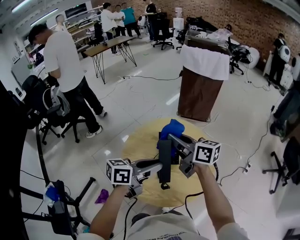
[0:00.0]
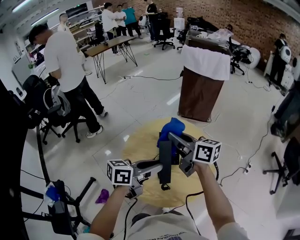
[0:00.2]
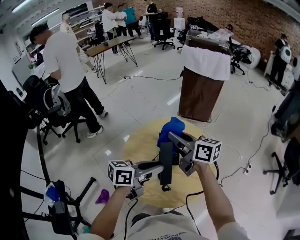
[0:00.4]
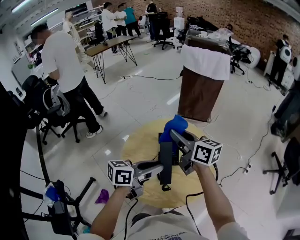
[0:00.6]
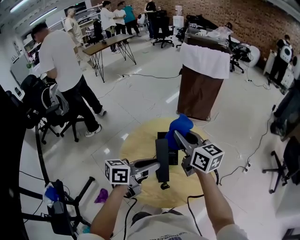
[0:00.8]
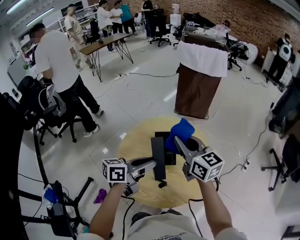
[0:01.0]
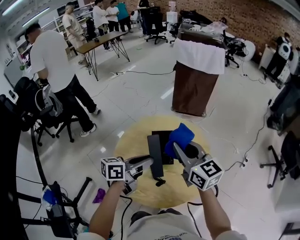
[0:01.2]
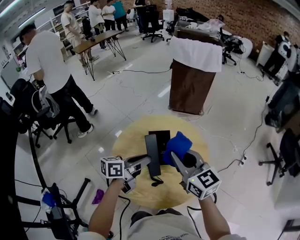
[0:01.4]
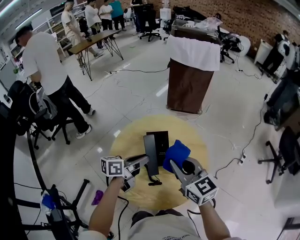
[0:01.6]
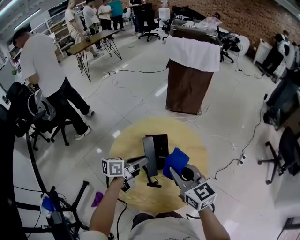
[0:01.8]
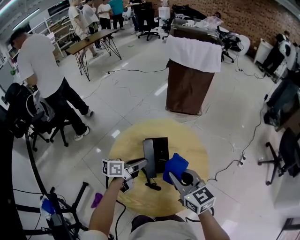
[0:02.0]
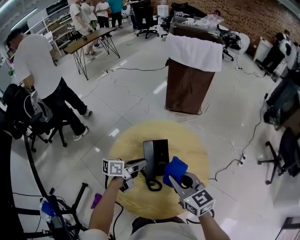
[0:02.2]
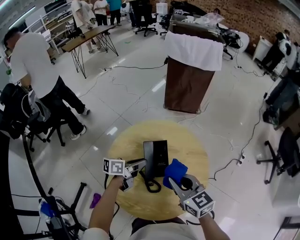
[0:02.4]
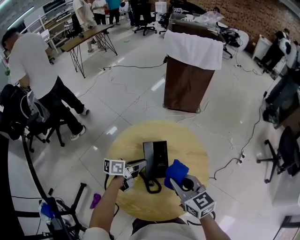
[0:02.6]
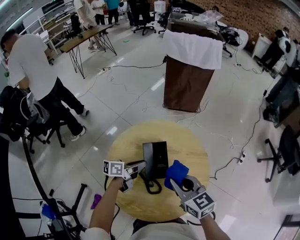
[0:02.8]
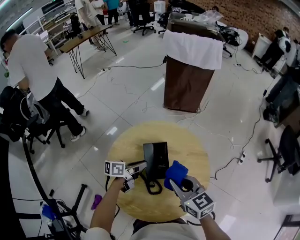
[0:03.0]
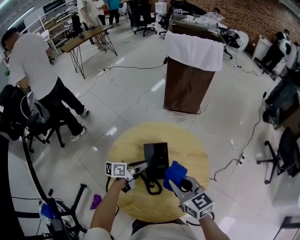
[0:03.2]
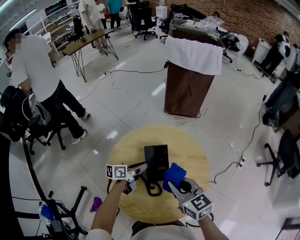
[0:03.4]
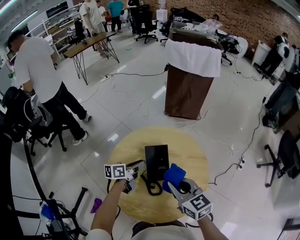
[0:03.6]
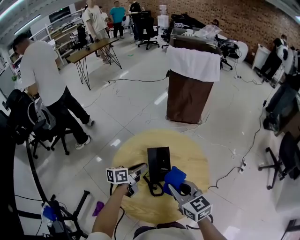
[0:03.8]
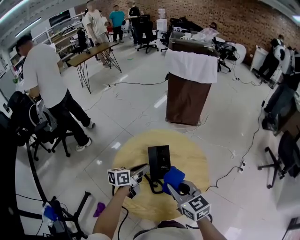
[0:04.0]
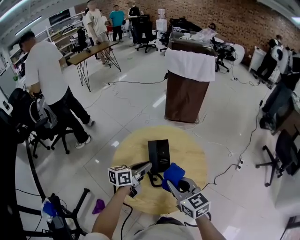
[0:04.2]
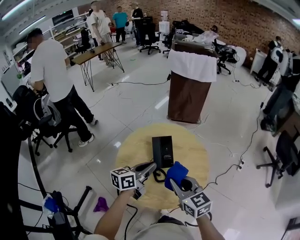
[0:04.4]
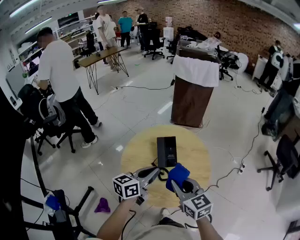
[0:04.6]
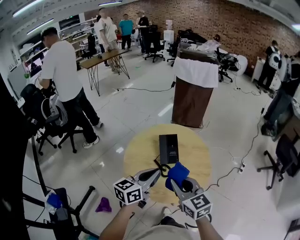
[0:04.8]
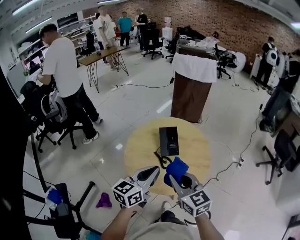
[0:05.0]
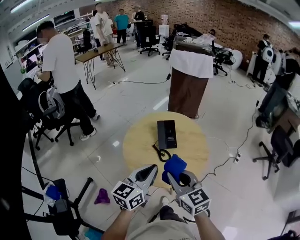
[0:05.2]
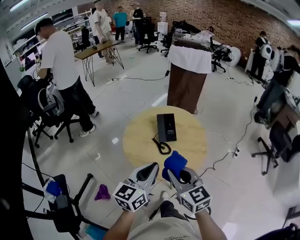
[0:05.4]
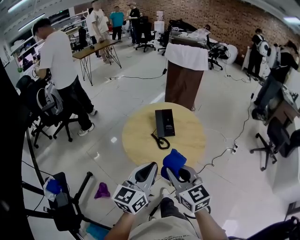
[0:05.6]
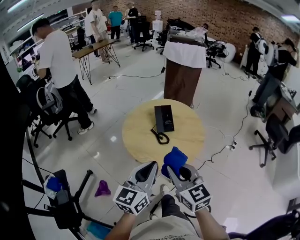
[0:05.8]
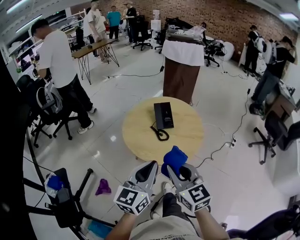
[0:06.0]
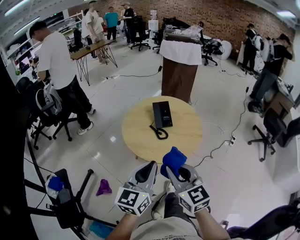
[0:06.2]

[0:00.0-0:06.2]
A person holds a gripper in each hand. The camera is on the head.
0.0 to 1.6 s: The right gripper heads to the right and backward, covering roughly 10 cm, and changes its angle by about 30 degrees. The left gripper is displaced downward and forward by some 10 cm.
1.6 to 3.2 s: The left gripper travels downward and forward by about 15 cm. Meanwhile the right gripper goes some 5 cm downward.
3.2 to 4.6 s: The left gripper moves upward and backward, some 25 cm, and swivels approximately 30 degrees, while the right gripper goes roughly 15 cm backward and upward.
4.6 to 6.2 s: Both grippers travel together backward, some 25 cm. The left gripper rotates roughly 30 degrees.

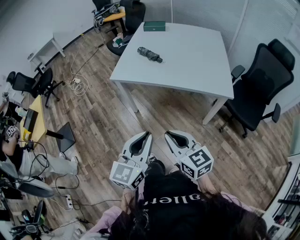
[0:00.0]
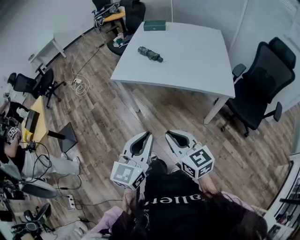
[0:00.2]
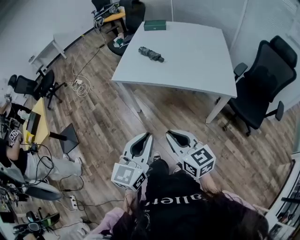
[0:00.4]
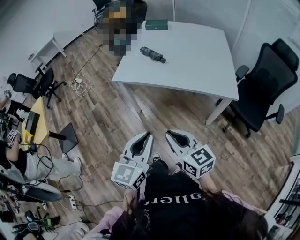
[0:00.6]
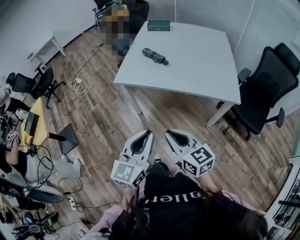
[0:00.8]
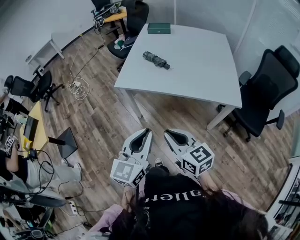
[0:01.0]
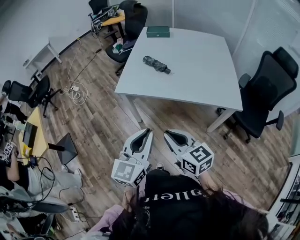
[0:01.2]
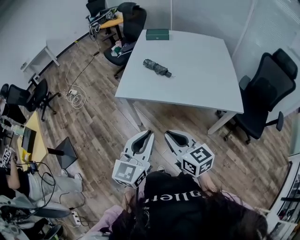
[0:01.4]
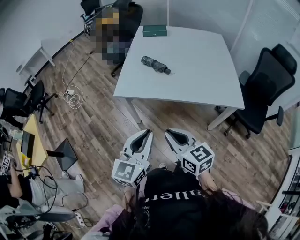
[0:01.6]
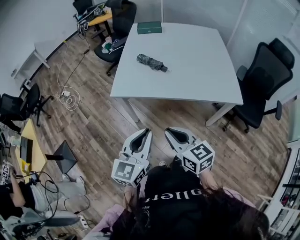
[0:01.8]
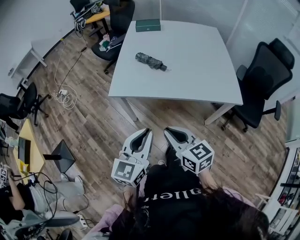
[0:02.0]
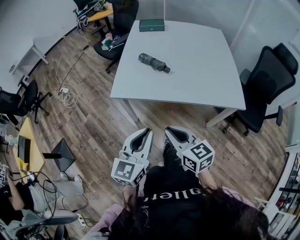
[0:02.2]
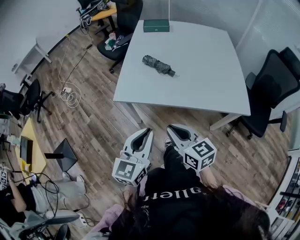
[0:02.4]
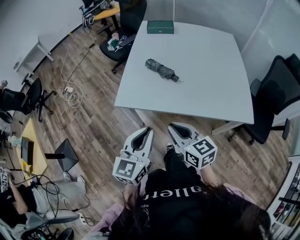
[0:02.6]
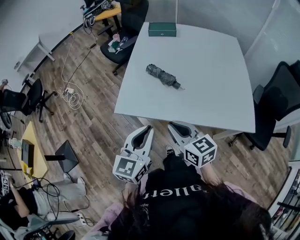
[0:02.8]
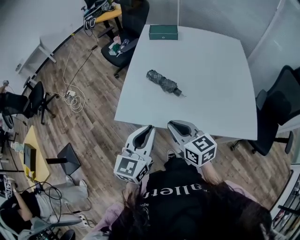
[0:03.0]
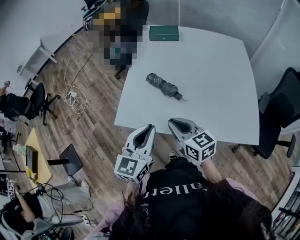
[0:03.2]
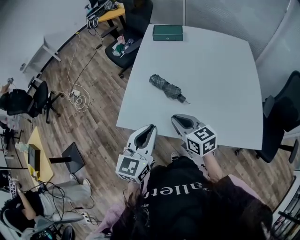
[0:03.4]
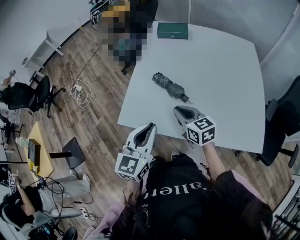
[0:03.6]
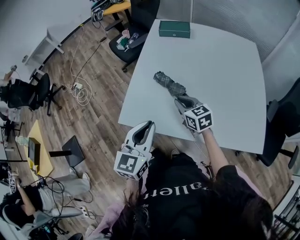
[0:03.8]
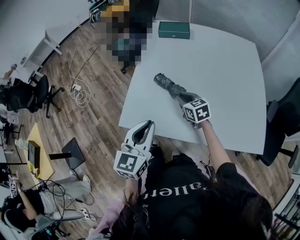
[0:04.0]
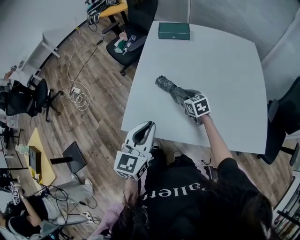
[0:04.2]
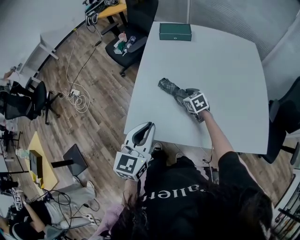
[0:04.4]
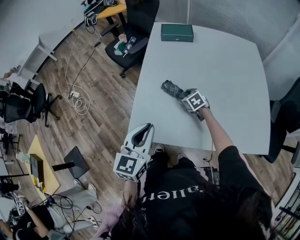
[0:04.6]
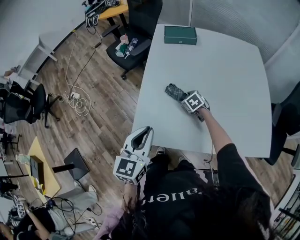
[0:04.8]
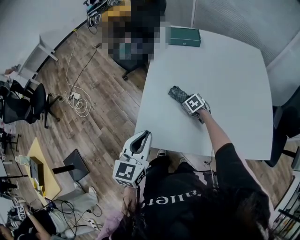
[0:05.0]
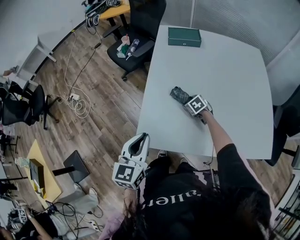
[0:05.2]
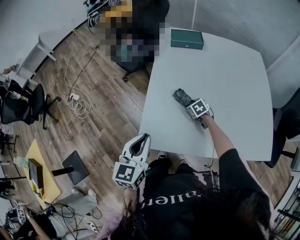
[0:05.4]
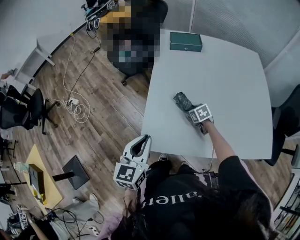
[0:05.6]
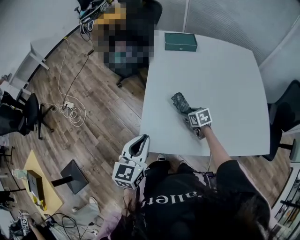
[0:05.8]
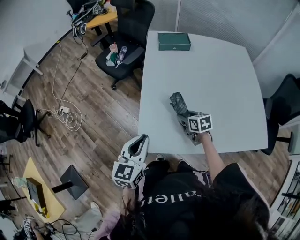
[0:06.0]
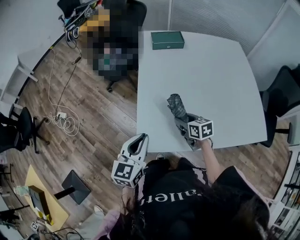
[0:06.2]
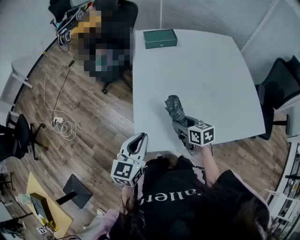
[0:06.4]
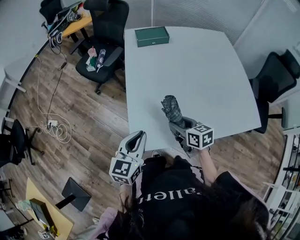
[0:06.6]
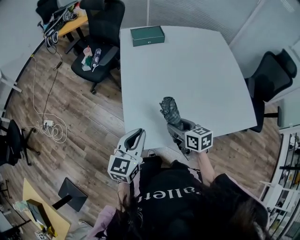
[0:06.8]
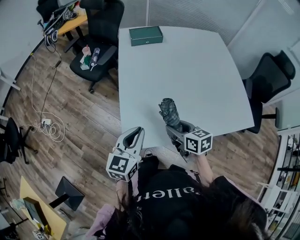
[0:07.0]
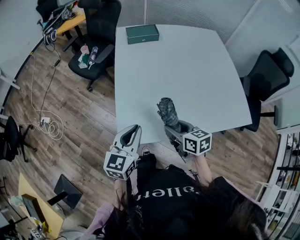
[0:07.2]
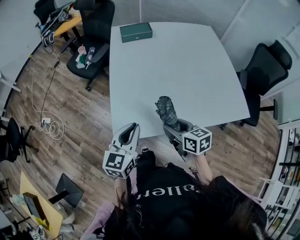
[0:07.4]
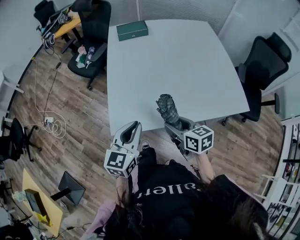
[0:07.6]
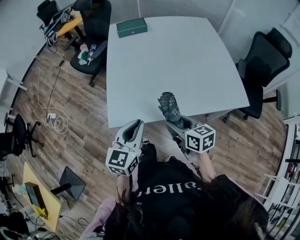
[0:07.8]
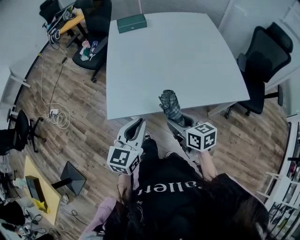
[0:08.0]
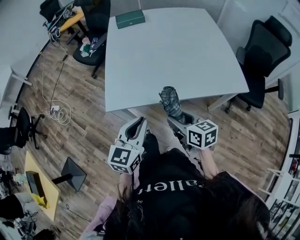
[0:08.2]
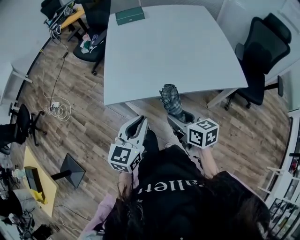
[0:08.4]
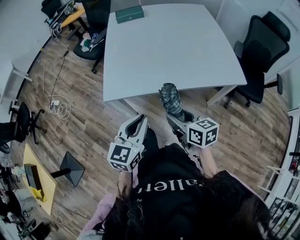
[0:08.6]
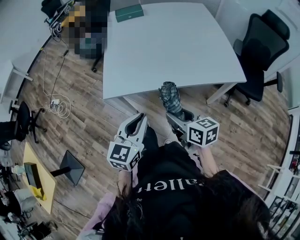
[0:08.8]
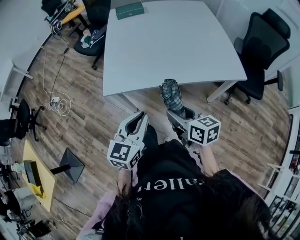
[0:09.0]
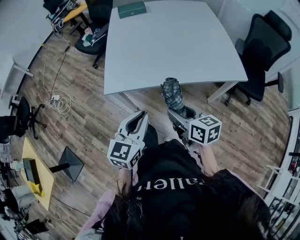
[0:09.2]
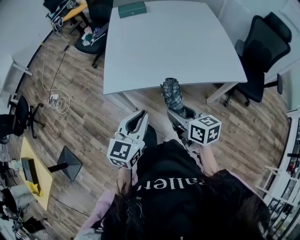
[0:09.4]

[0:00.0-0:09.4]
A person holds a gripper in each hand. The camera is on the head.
0.0 to 1.6 s: Both grippers travel together forward and to the left, approximately 20 cm.
1.6 to 3.2 s: The two grippers go some 30 cm forward.
3.2 to 4.8 s: The left gripper moves forward and to the left, approximately 15 cm. Meanwhile the right gripper shifts approximately 35 cm forward and downward, points its fingers about 40 degrees further downward, and opens up.
4.8 to 6.2 s: The left gripper travels to the left by some 10 cm, while the right gripper shifts some 15 cm backward, upward and to the left, and changes its angle by some 40 degrees.
6.2 to 7.8 s: The right gripper is displaced backward, to the right and upward by some 25 cm. Meanwhile the left gripper moves to the right and backward, about 20 cm.
7.8 to 9.4 s: Both grippers move backward, approximately 15 cm.

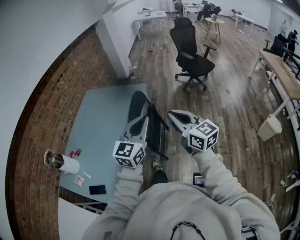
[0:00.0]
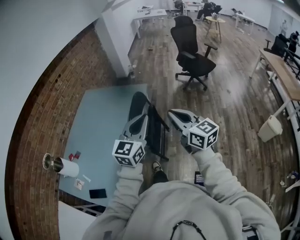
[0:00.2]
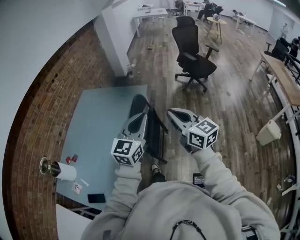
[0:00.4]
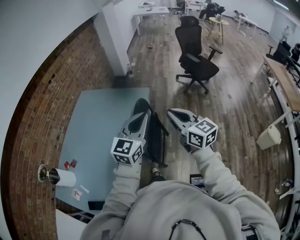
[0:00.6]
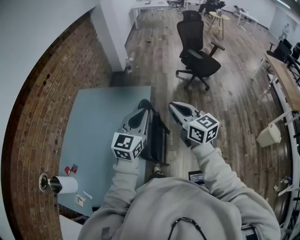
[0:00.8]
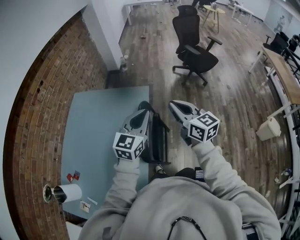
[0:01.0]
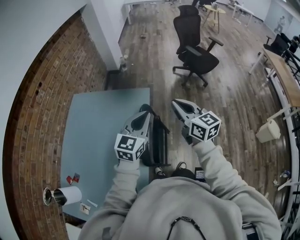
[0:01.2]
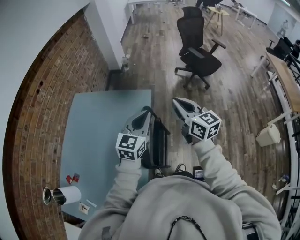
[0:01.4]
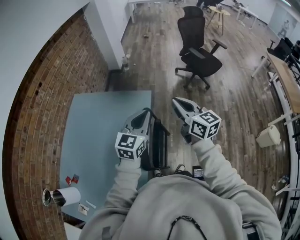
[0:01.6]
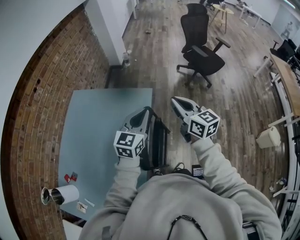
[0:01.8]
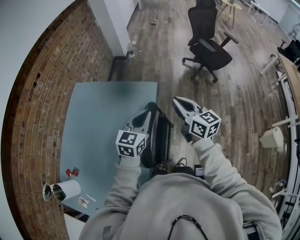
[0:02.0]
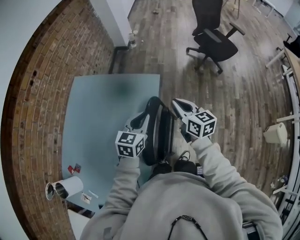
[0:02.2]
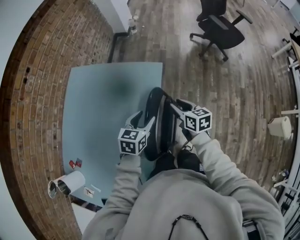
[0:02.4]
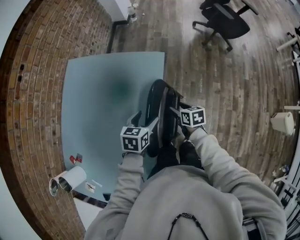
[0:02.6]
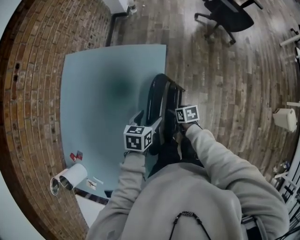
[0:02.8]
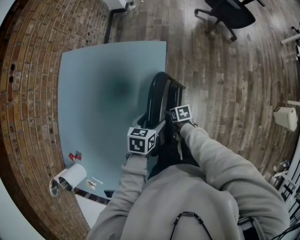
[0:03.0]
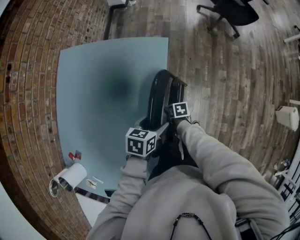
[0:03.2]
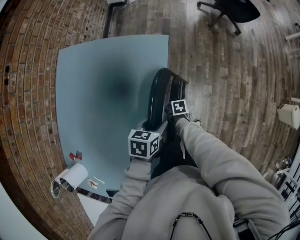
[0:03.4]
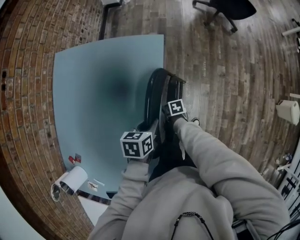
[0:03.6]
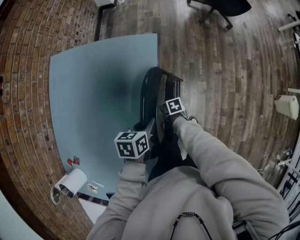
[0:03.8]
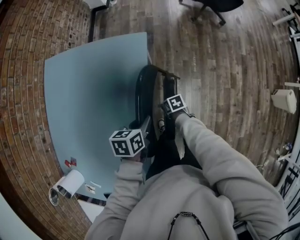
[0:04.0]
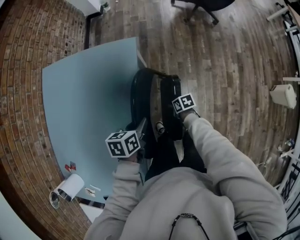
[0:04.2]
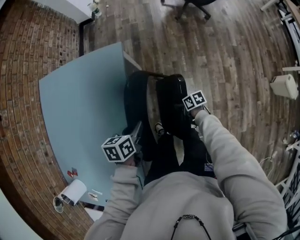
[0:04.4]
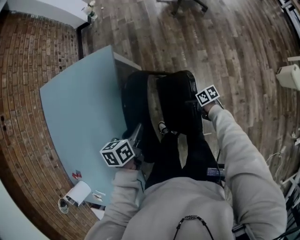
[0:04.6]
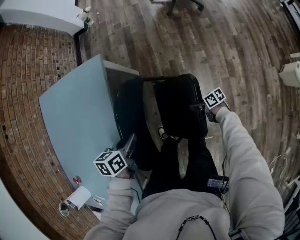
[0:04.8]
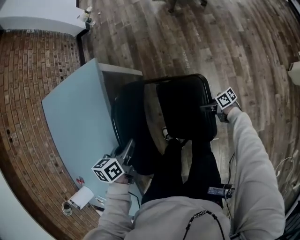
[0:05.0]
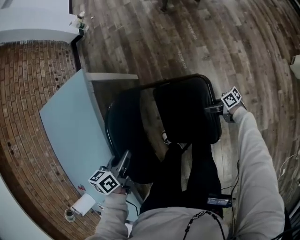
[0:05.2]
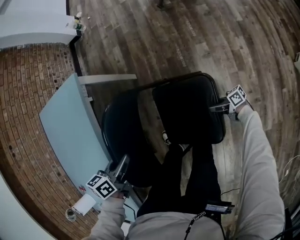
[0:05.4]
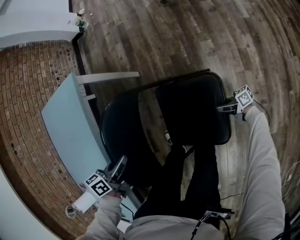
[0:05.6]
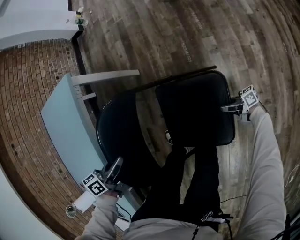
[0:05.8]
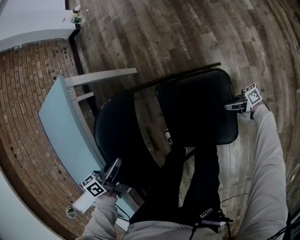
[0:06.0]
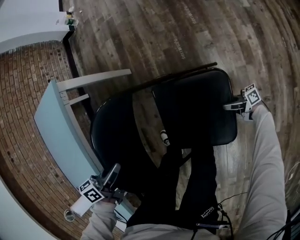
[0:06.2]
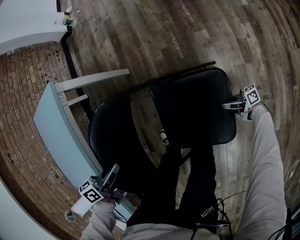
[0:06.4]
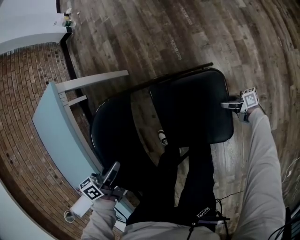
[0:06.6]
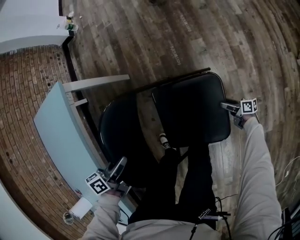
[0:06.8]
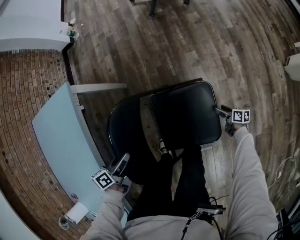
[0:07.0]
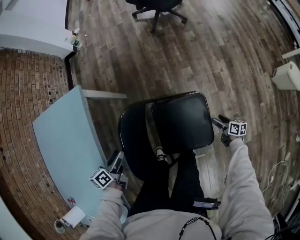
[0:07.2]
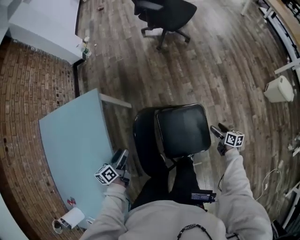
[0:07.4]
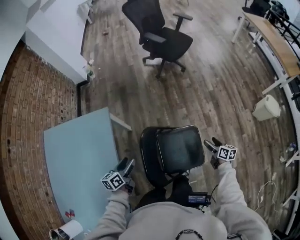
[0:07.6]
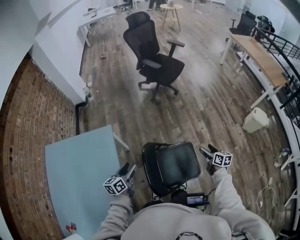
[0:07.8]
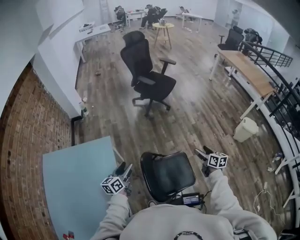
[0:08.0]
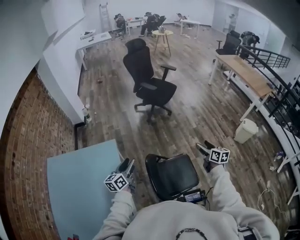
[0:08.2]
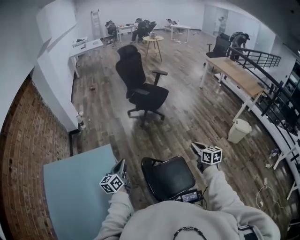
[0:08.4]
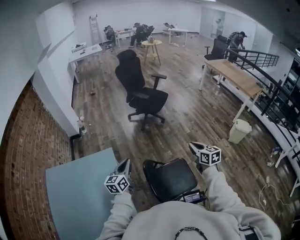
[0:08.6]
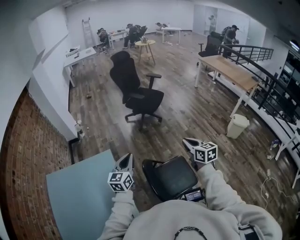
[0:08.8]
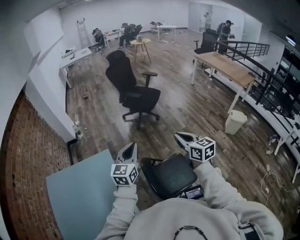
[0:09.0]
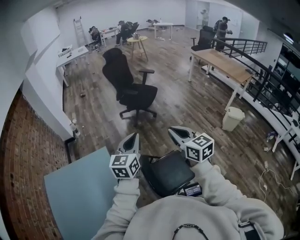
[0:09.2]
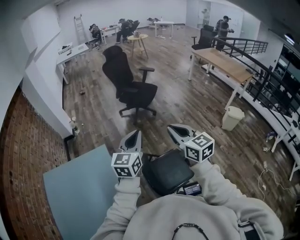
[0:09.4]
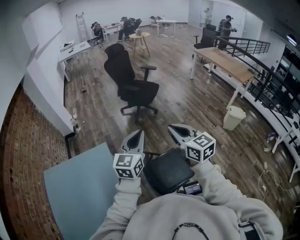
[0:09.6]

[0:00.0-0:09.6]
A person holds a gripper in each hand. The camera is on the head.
0.0 to 1.6 s: The two grippers go roughly 40 cm forward.
1.6 to 3.2 s: The right gripper moves downward, some 60 cm, tips its fingers downward by approximately 60 degrees, and opens up. Meanwhile the left gripper is displaced downward by some 35 cm, tilts its fingers about 40 degrees downward, and opens.
3.2 to 4.8 s: The right gripper ends up some 35 cm from where it was, points its fingers roughly 40 degrees further upward, and closes its fingers; the left gripper changes place by about 15 cm, and closes up.
4.8 to 6.4 s: The left gripper moves downward, some 15 cm. Meanwhile the right gripper is displaced downward by approximately 25 cm, and angles its fingers upward, by some 30 degrees.
6.4 to 8.0 s: The right gripper heads upward, covering some 60 cm, angles its fingers downward, by some 30 degrees, and opens its fingers; the left gripper moves upward, about 30 cm, swivels some 40 degrees, and opens its fingers.
8.0 to 9.6 s: The left gripper travels upward and to the right by some 30 cm, changes its angle by roughly 40 degrees, and closes up. The right gripper is displaced upward and to the left by some 35 cm, swivels approximately 30 degrees, and closes.
